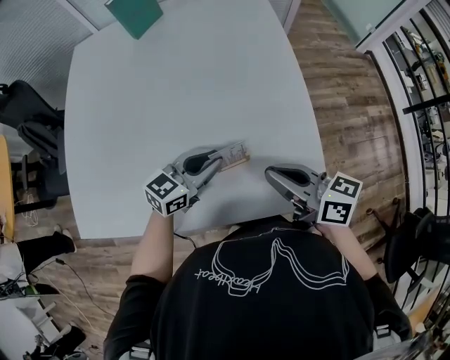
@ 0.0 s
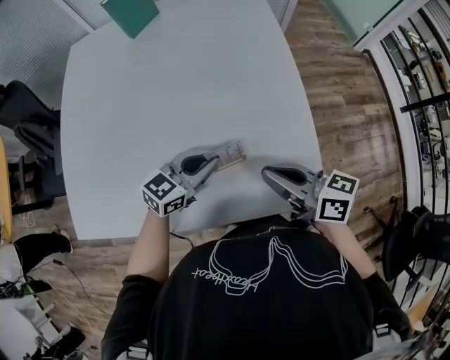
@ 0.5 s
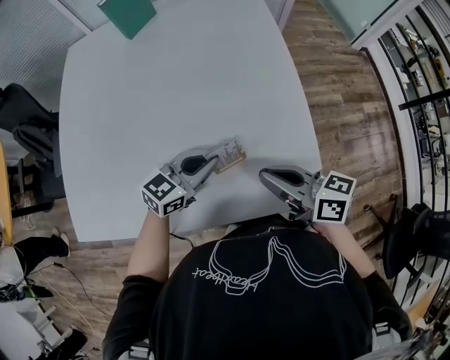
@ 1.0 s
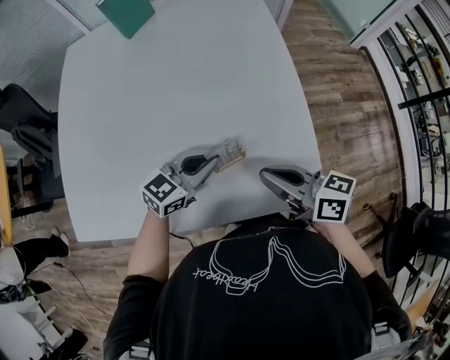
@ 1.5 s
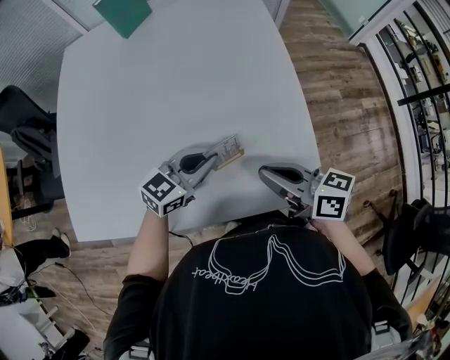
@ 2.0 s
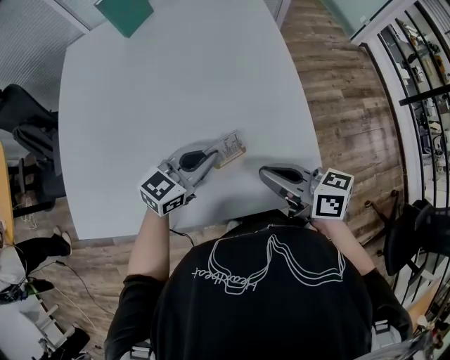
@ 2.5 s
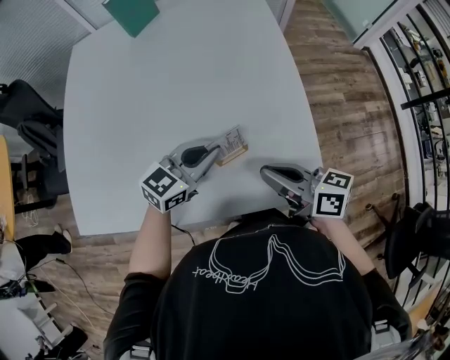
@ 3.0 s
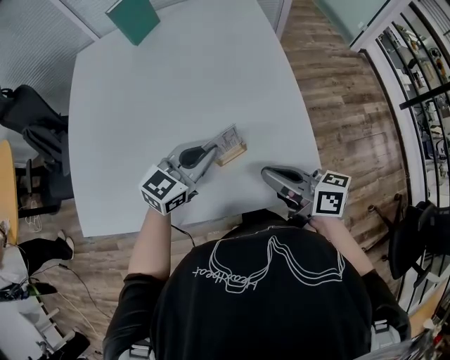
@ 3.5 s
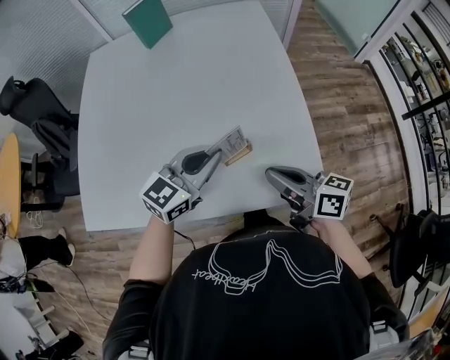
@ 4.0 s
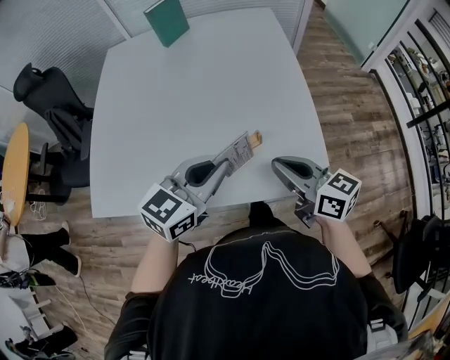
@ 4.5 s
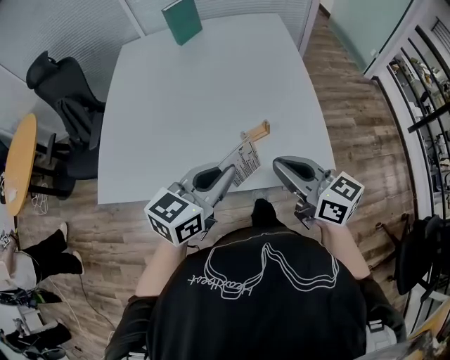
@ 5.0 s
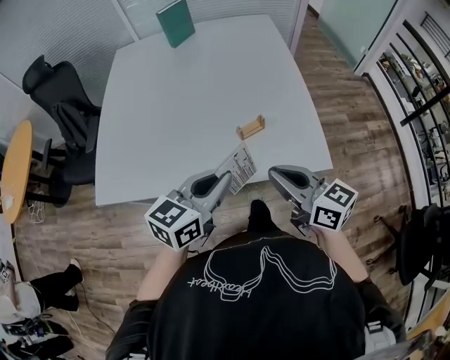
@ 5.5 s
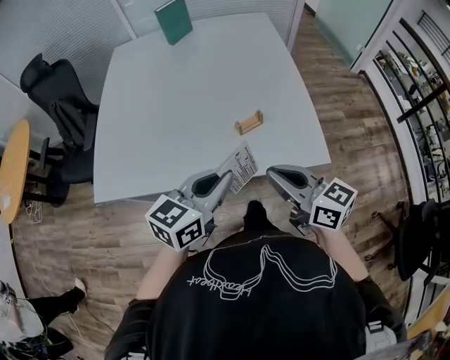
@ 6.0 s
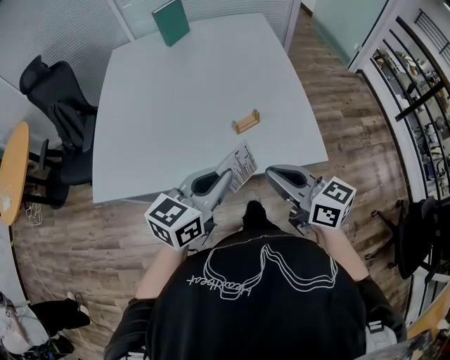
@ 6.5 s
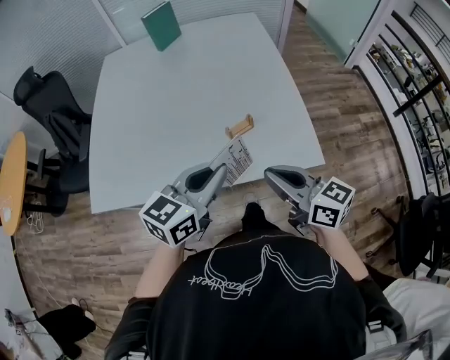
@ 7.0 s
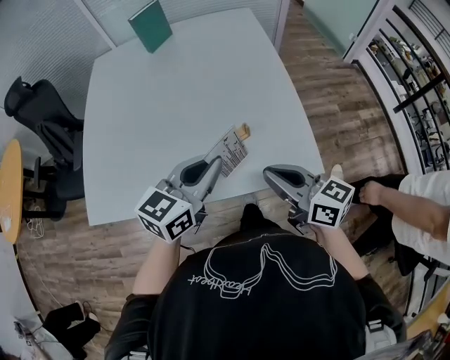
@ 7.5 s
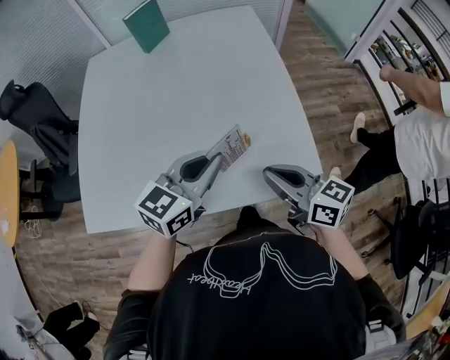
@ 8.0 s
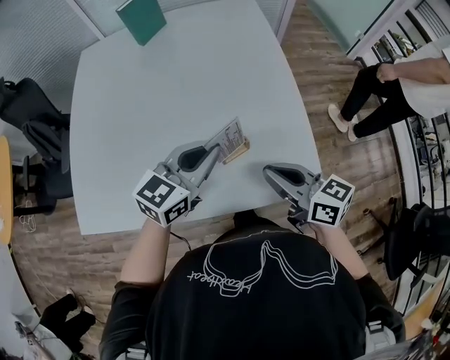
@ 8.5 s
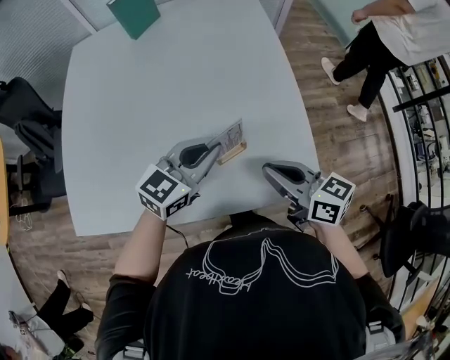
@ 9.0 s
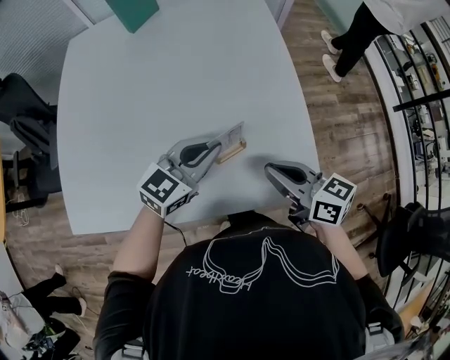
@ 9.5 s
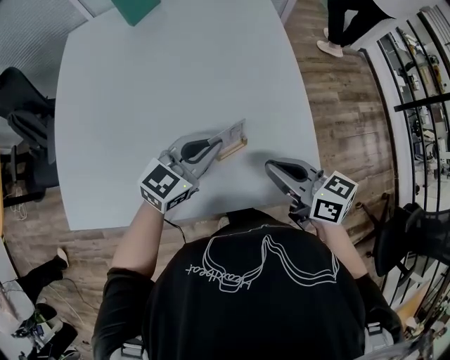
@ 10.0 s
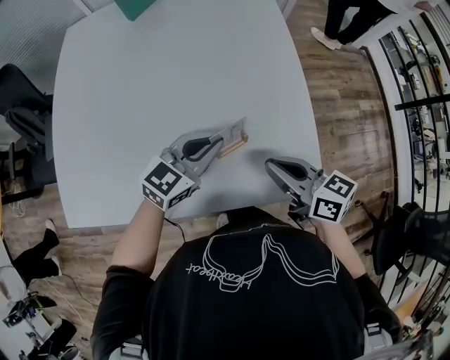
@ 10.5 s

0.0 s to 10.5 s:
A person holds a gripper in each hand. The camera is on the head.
0.0 to 2.0 s: The grippers move only a little.
2.0 to 4.0 s: The left gripper heads upward, covering about 10 cm.
4.0 to 6.5 s: Both grippers travel together backward, about 20 cm. The right gripper changes its angle by approximately 20 degrees.
6.5 to 8.5 s: Both grippers move forward, roughly 20 cm.
8.5 to 10.5 s: The right gripper ends up some 5 cm from where it was. The left gripper heads downward, covering roughly 10 cm.

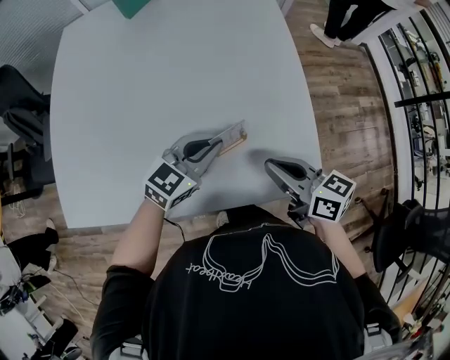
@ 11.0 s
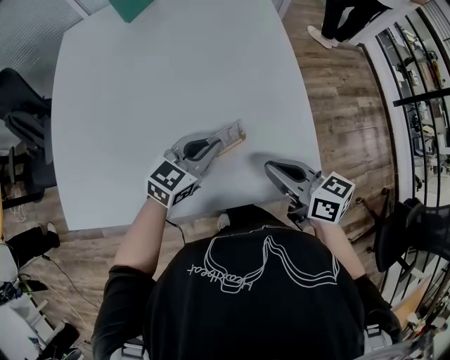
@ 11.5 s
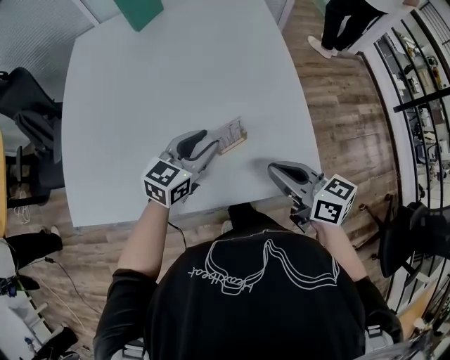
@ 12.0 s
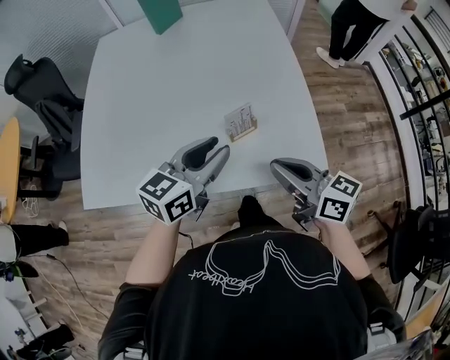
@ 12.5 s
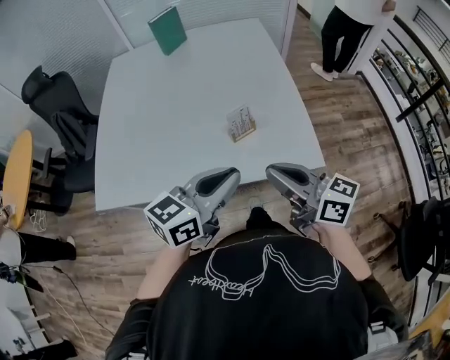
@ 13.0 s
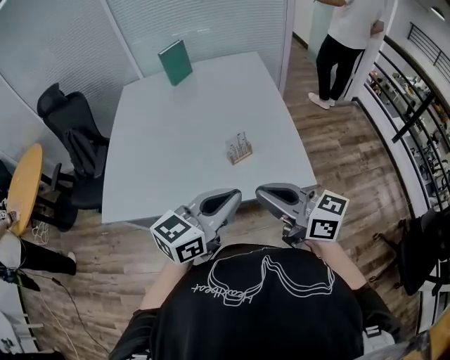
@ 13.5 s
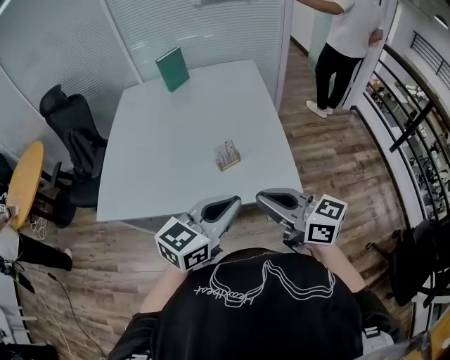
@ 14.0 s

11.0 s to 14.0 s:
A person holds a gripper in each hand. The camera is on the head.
11.0 to 12.5 s: The right gripper goes approximately 10 cm backward and upward; the left gripper moves upward and backward, about 15 cm, rotates about 20 degrees, and opens its fingers.
12.5 to 14.0 s: The right gripper is displaced backward and upward by about 15 cm, while the left gripper shifts some 20 cm backward, upward and to the right, and closes up.

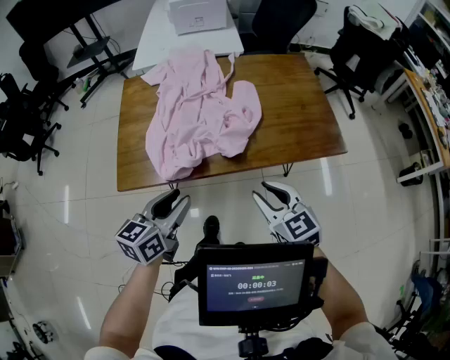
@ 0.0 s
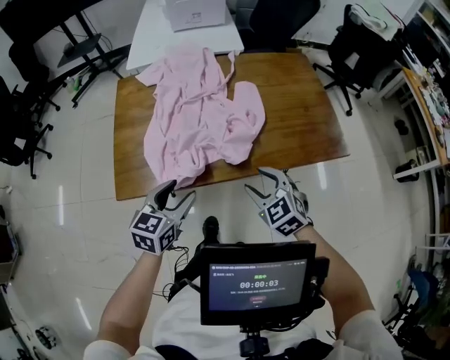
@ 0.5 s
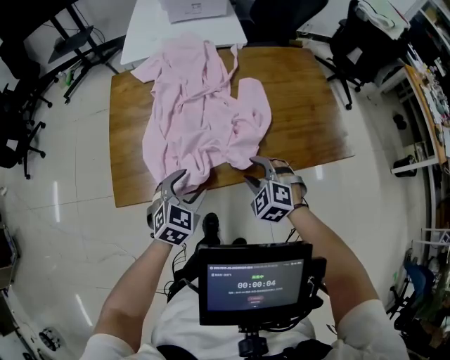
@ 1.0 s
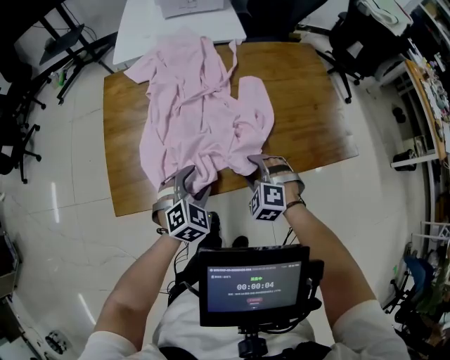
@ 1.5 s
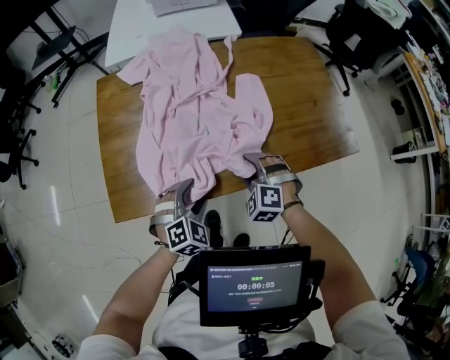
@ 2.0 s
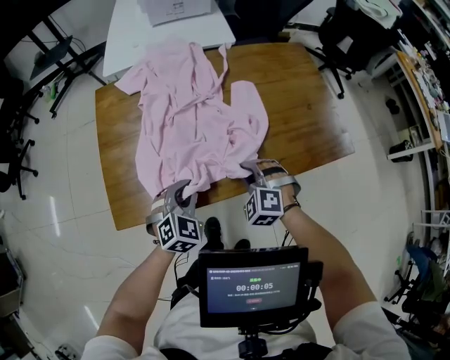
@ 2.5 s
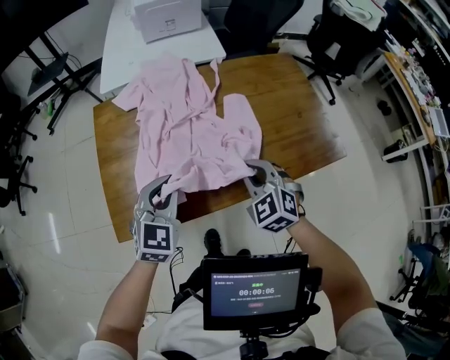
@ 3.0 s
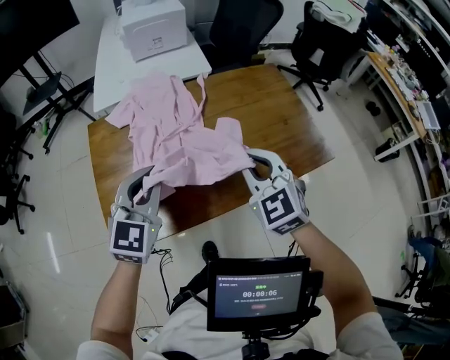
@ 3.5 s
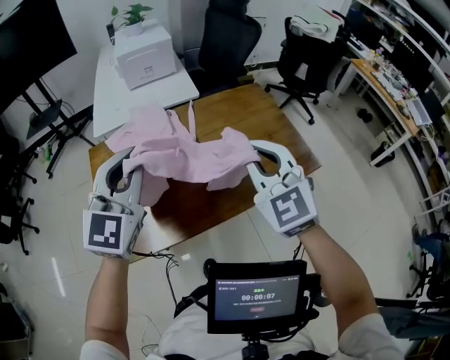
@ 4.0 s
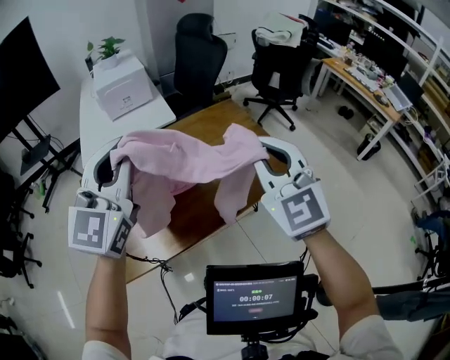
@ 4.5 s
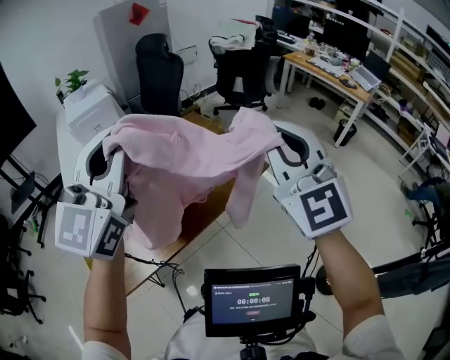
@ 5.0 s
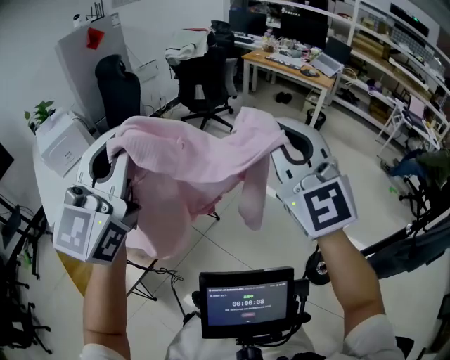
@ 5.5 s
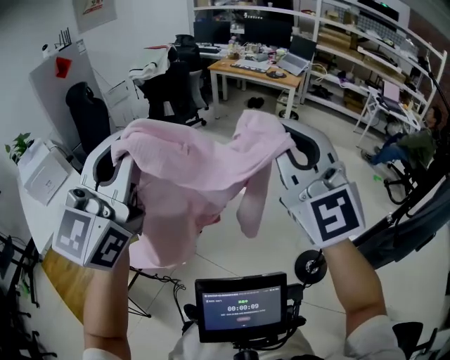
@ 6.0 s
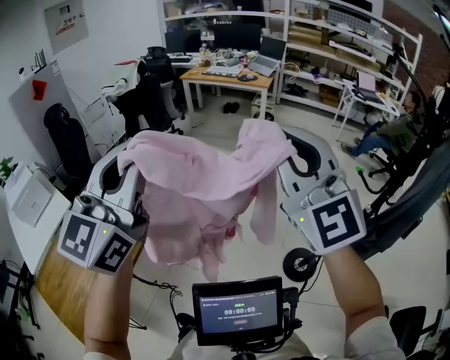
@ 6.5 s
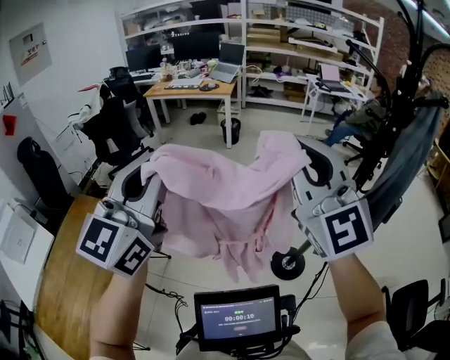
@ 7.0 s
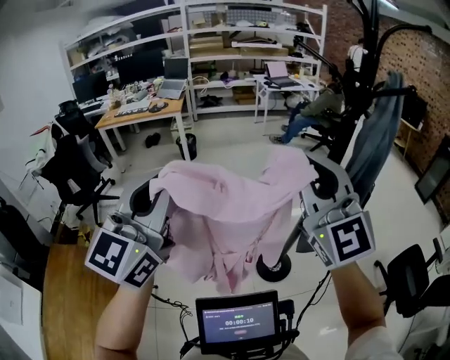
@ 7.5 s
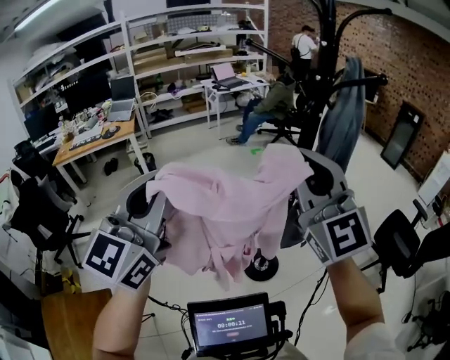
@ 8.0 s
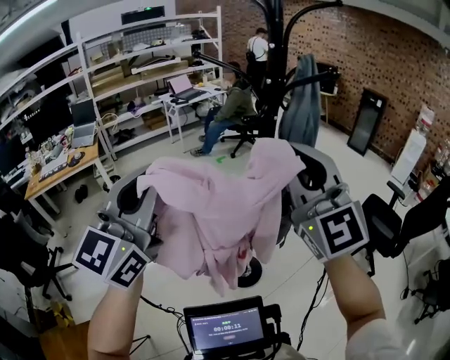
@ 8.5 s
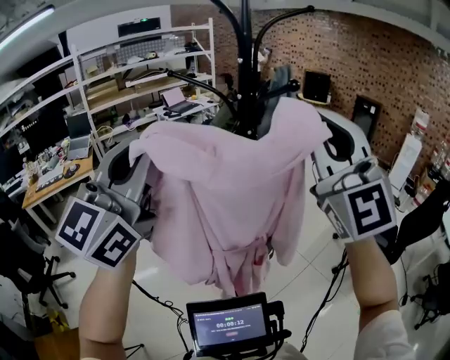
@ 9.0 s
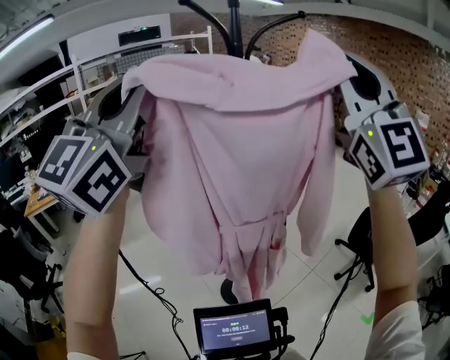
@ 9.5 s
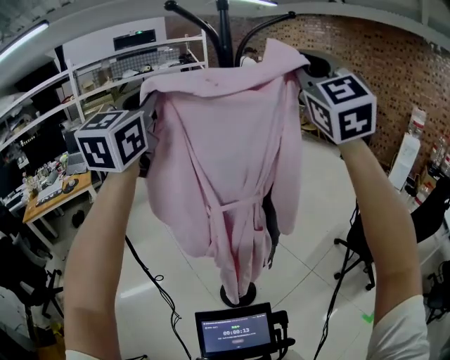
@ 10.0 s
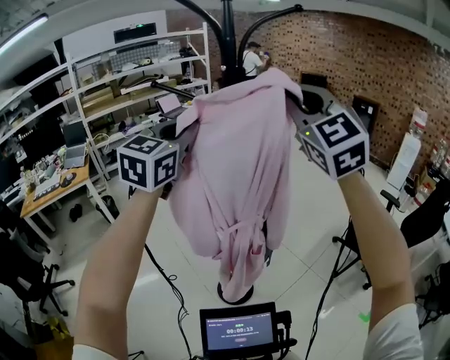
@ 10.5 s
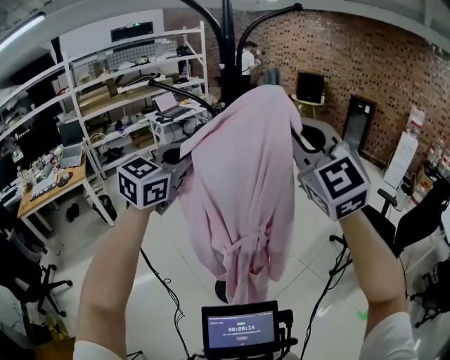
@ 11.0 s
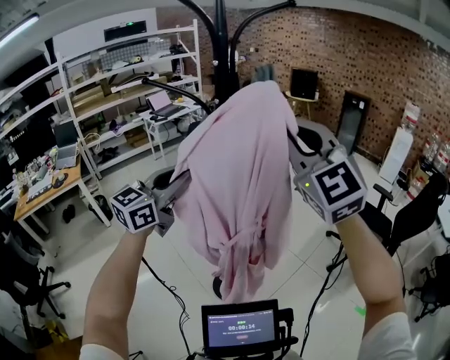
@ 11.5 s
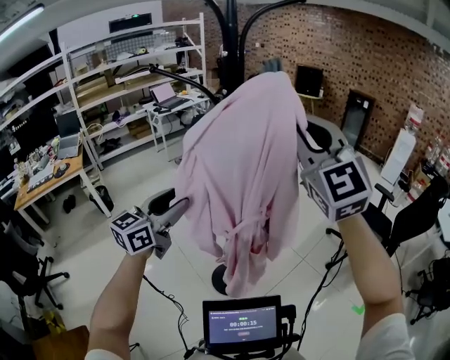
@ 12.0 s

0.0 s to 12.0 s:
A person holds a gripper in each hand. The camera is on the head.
0.0 to 2.0 s: The right gripper heads downward, forward and to the left, covering about 25 cm, twists about 50 degrees counterclockwise, seen from behind, and opens up. Meanwhile the left gripper shifts roughly 20 cm downward and forward, rolls clockwise, seen from behind, by approximately 60 degrees, and opens.
2.0 to 4.0 s: Both grippers move upward, approximately 35 cm. The right gripper points its fingers some 40 degrees further upward, and closes; the left gripper points its fingers about 50 degrees further upward, and closes its fingers.
4.0 to 6.0 s: The pair of grippers is taken some 50 cm. The right gripper changes its angle by approximately 40 degrees. Meanwhile the left gripper rotates roughly 50 degrees.
6.0 to 8.0 s: The right gripper ends up roughly 35 cm from where it was, and swivels roughly 50 degrees. The left gripper changes place by some 40 cm, and turns by some 50 degrees.
8.0 to 10.0 s: The right gripper heads upward, to the right and forward, covering roughly 35 cm, and swivels some 30 degrees. The left gripper goes some 30 cm forward, upward and to the right.
10.0 to 12.0 s: The right gripper goes about 15 cm downward. The left gripper shifts about 35 cm downward, turns by roughly 40 degrees, and opens its fingers.

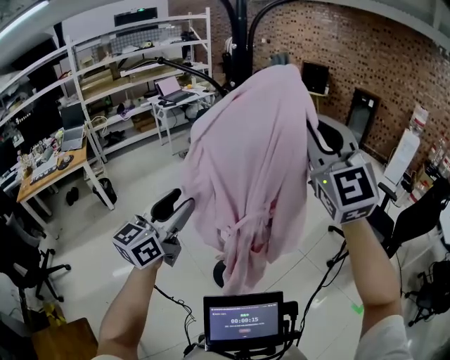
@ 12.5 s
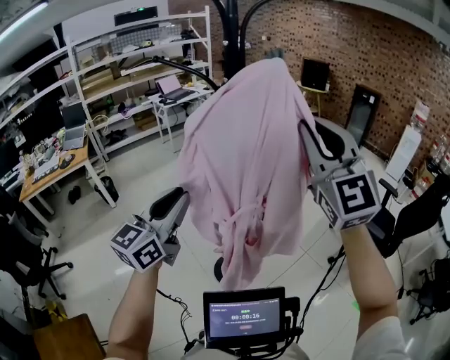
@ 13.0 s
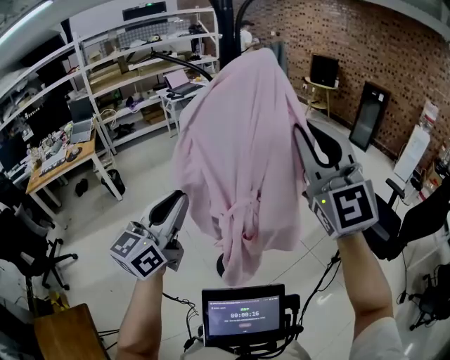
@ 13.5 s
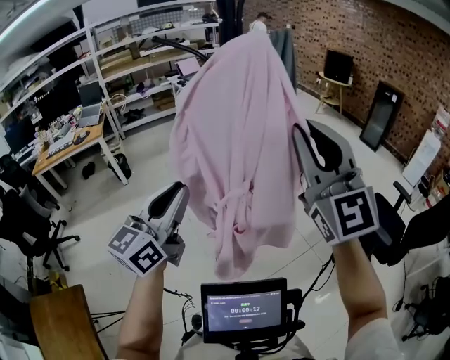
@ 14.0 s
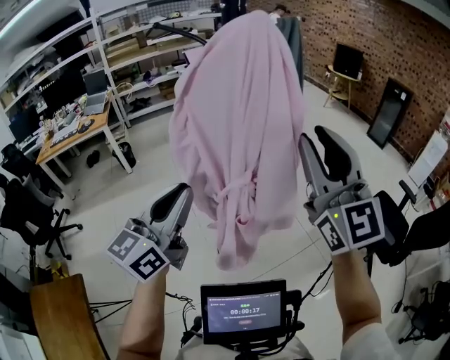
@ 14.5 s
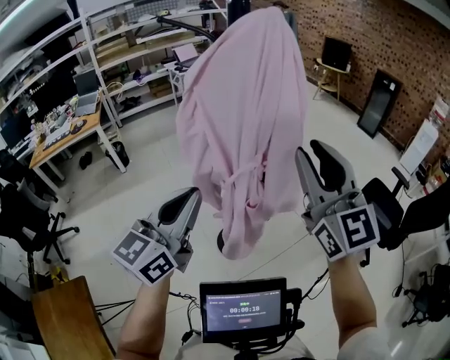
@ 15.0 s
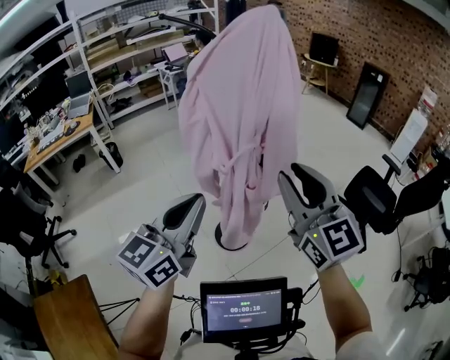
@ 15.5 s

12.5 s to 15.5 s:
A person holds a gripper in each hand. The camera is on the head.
12.5 to 14.0 s: The right gripper moves some 5 cm. Meanwhile the left gripper shifts about 10 cm backward and to the right, and closes.
14.0 to 15.5 s: The right gripper is displaced downward and backward by some 15 cm, and changes its angle by roughly 20 degrees; the left gripper moves backward, about 10 cm.
